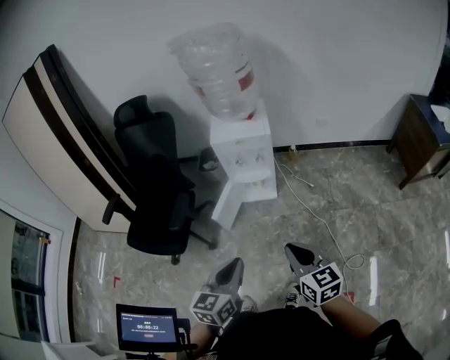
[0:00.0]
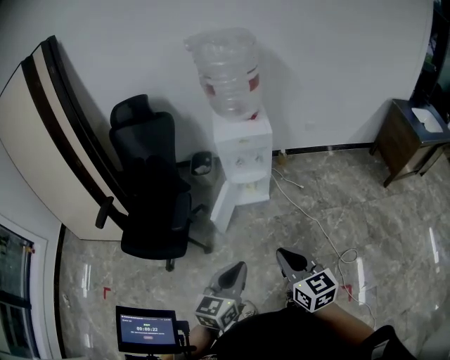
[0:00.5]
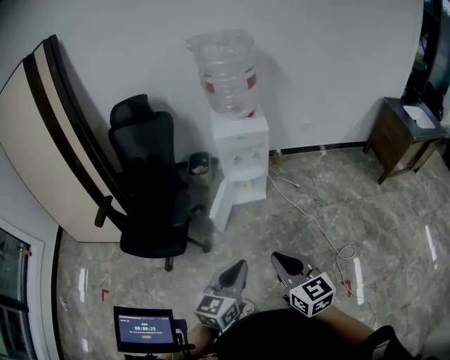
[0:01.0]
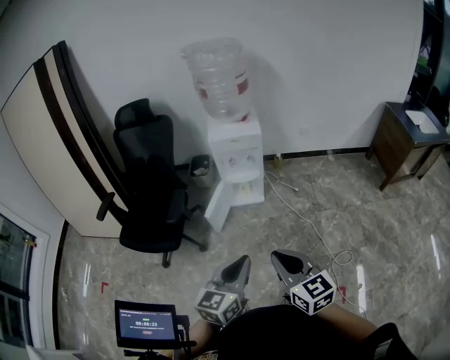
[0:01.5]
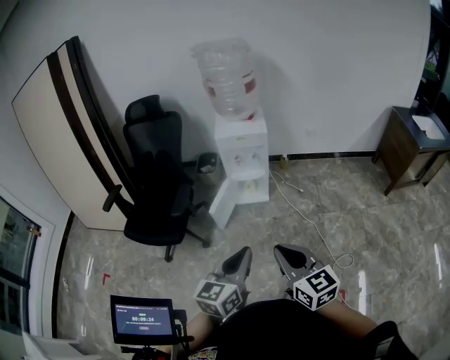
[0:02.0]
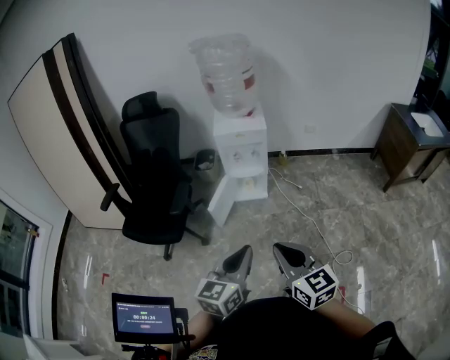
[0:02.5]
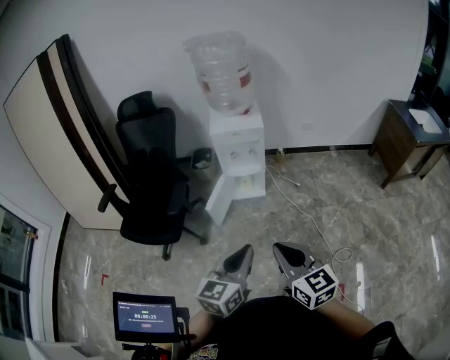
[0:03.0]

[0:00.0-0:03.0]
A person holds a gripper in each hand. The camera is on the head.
0:00.0 to 0:01.5: The right gripper heads backward, upward and to the left, covering some 15 cm, while the left gripper moves backward, approximately 10 cm.
0:01.5 to 0:03.0: The grippers make only small movements.

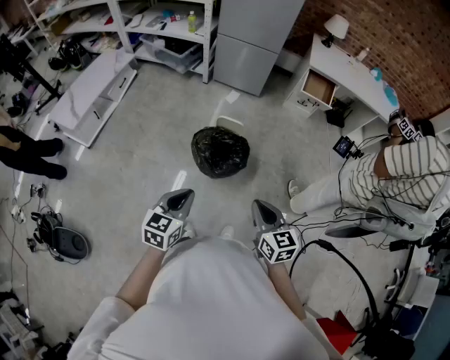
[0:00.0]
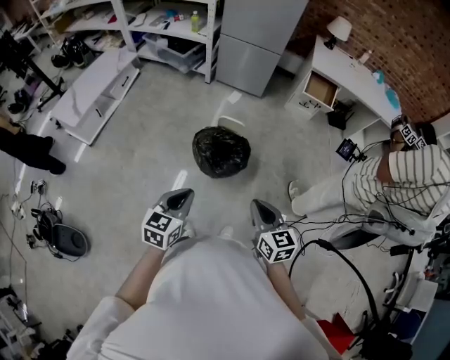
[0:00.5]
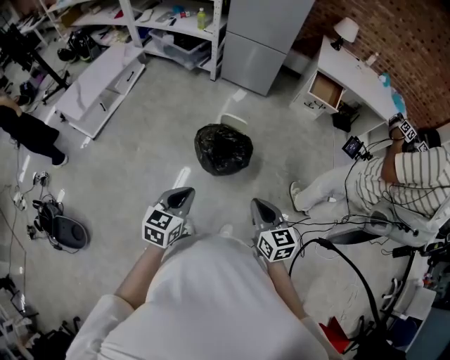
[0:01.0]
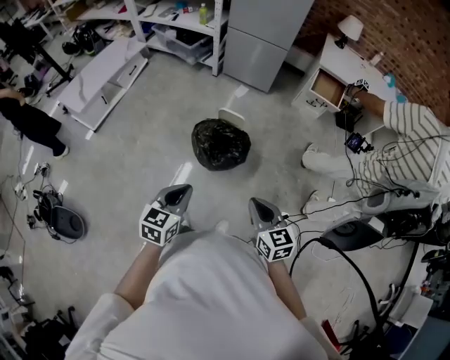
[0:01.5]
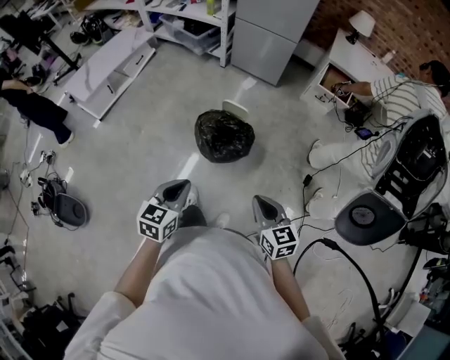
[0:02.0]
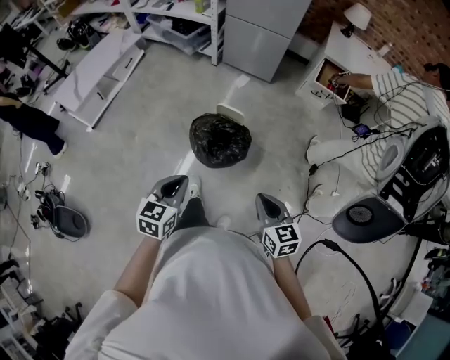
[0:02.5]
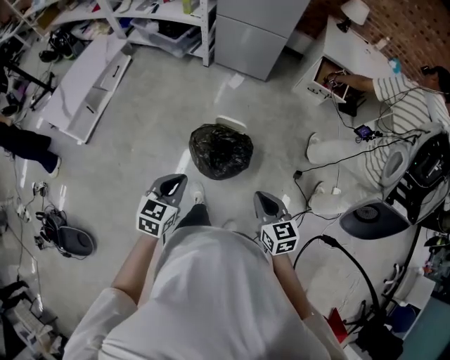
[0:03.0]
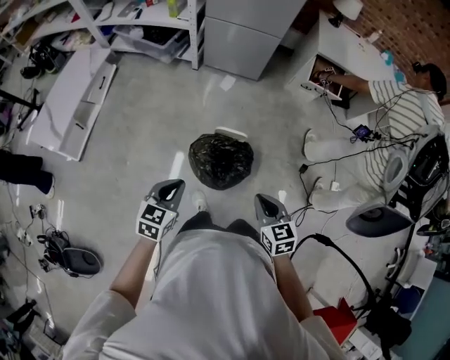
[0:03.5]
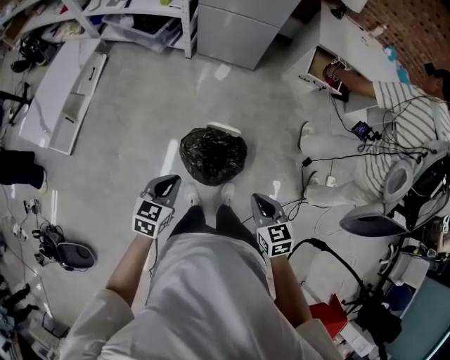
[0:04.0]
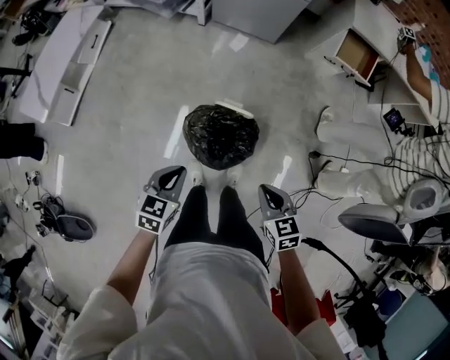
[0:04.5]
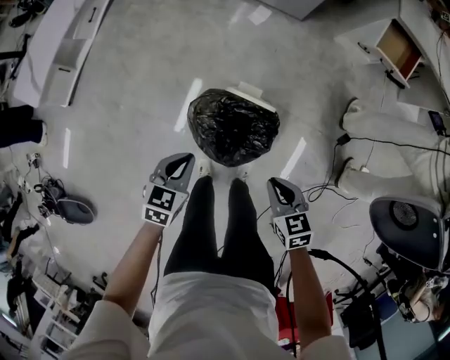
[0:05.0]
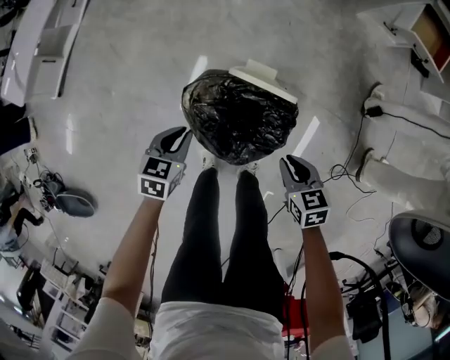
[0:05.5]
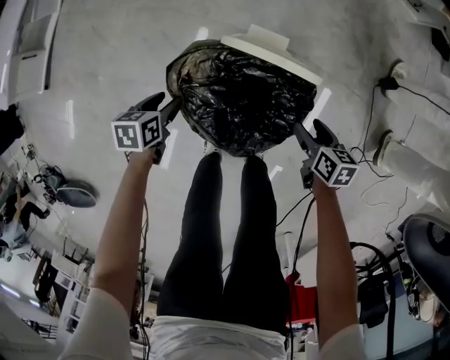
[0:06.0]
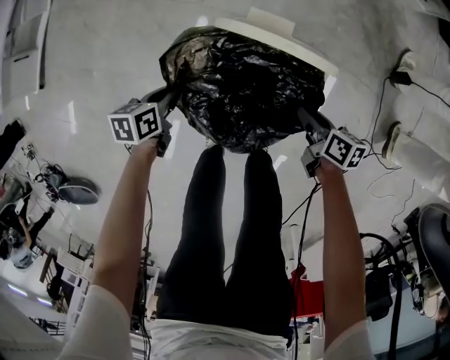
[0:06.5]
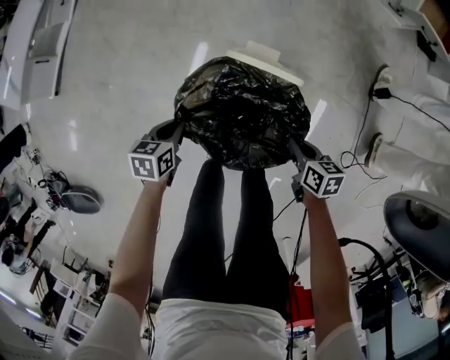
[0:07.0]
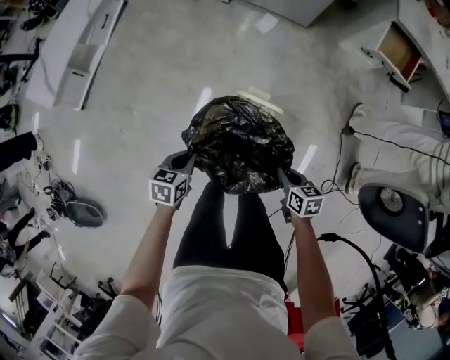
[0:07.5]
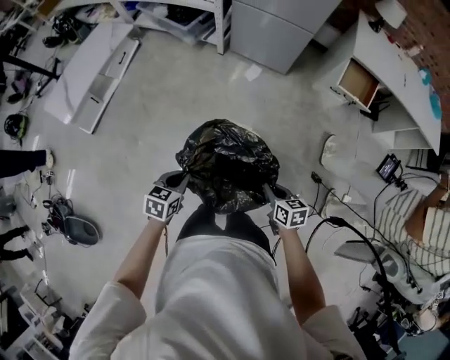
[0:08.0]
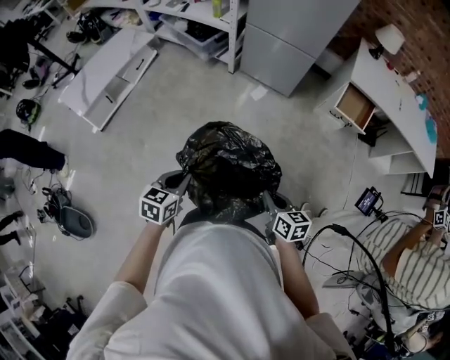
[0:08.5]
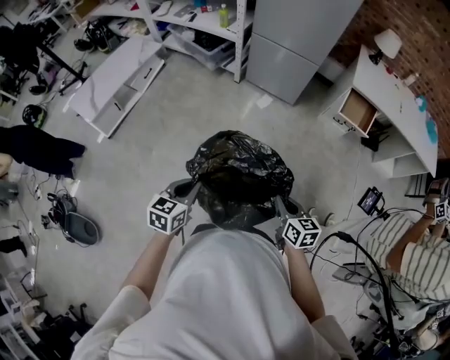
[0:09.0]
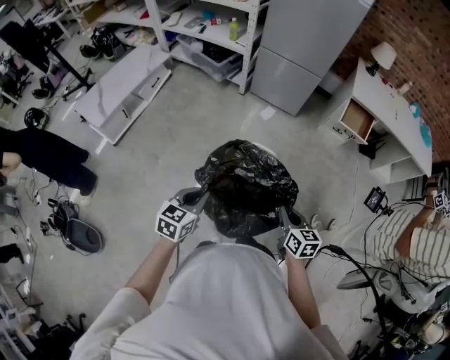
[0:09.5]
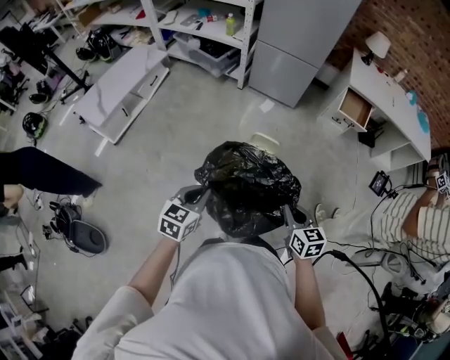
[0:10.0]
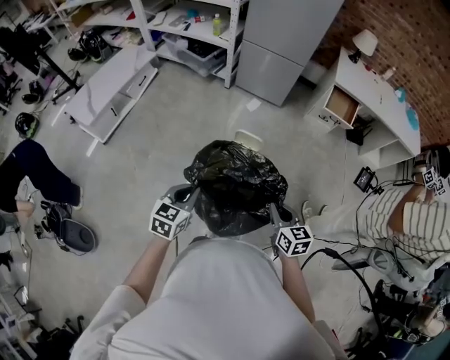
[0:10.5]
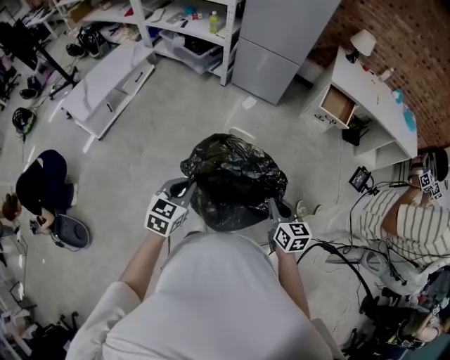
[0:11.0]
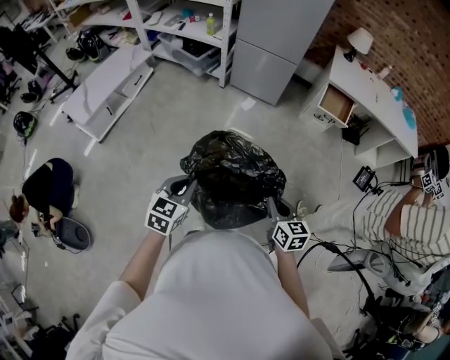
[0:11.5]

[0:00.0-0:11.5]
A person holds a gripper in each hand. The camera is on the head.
0:00.0 to 0:02.0: Both grippers move to the right, roughly 10 cm.
0:02.0 to 0:04.0: The grippers both shift forward by about 30 cm.
0:04.0 to 0:06.0: The grippers both shift downward by approximately 60 cm. The right gripper swivels about 40 degrees, and opens; the left gripper rotates approximately 40 degrees, and opens.
0:06.0 to 0:07.5: Both grippers travel together upward, roughly 25 cm. The left gripper closes its fingers; the right gripper closes.
0:07.5 to 0:09.5: The left gripper moves upward and backward, roughly 40 cm, and changes its angle by roughly 30 degrees; the right gripper goes some 35 cm upward, and changes its angle by roughly 30 degrees.
0:09.5 to 0:11.5: The right gripper travels to the right and backward by approximately 10 cm; the left gripper travels to the right by approximately 5 cm.

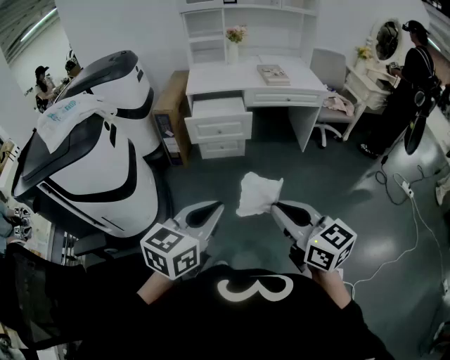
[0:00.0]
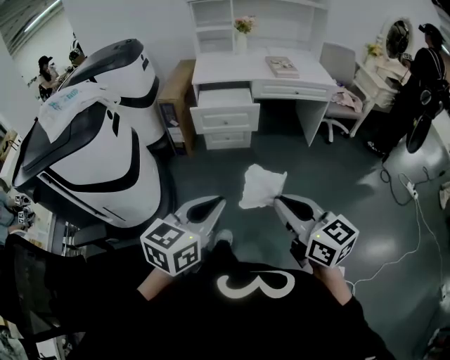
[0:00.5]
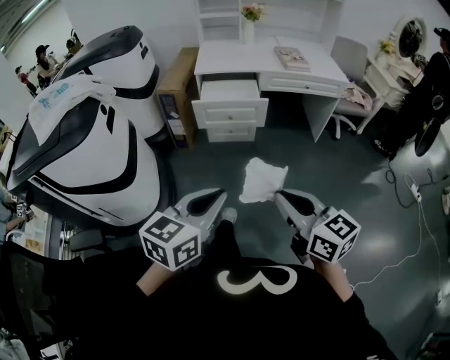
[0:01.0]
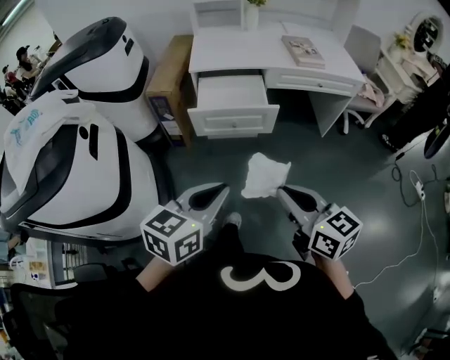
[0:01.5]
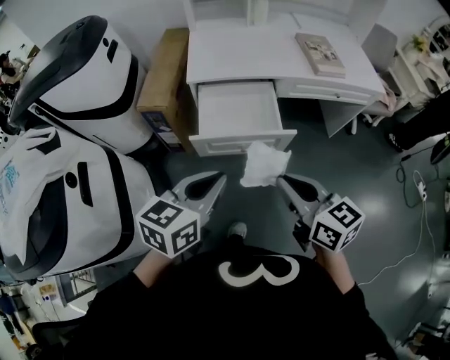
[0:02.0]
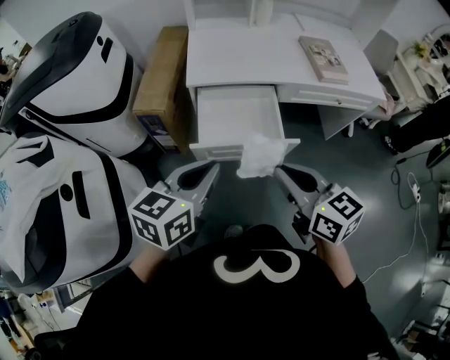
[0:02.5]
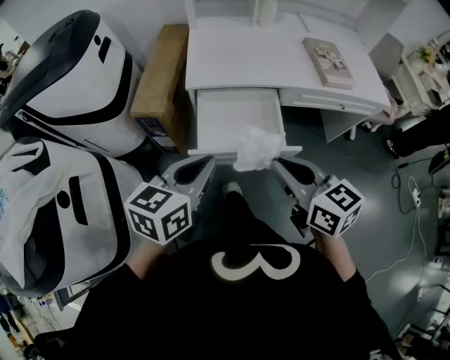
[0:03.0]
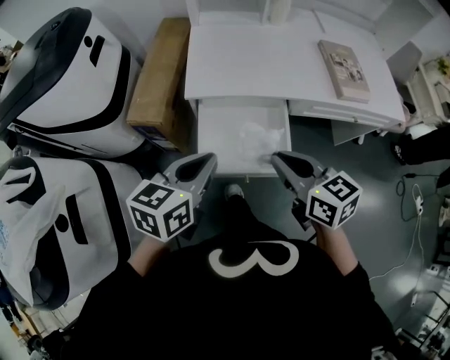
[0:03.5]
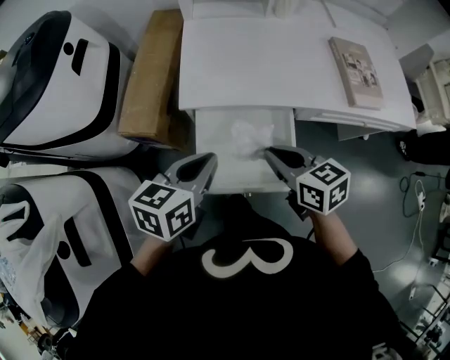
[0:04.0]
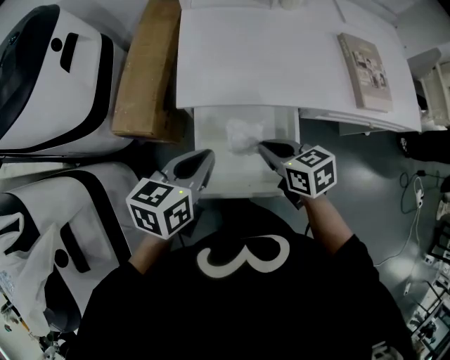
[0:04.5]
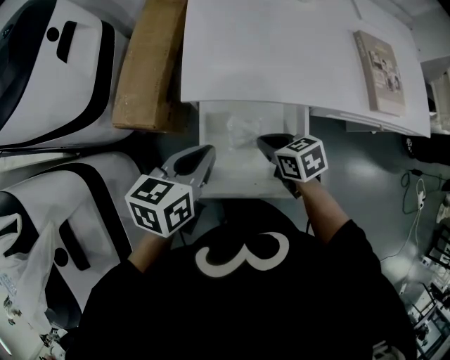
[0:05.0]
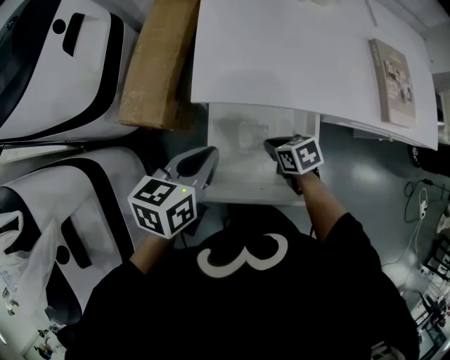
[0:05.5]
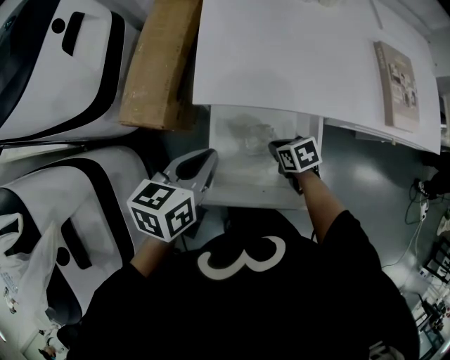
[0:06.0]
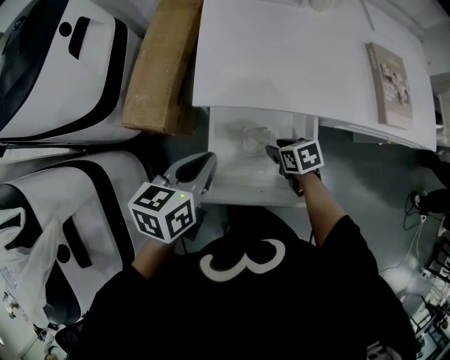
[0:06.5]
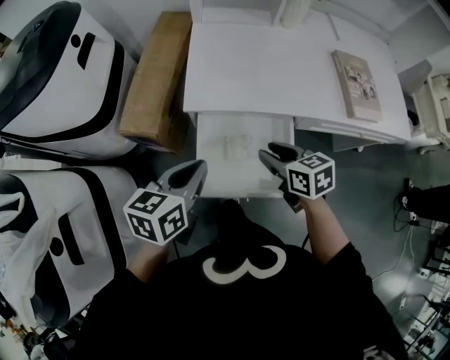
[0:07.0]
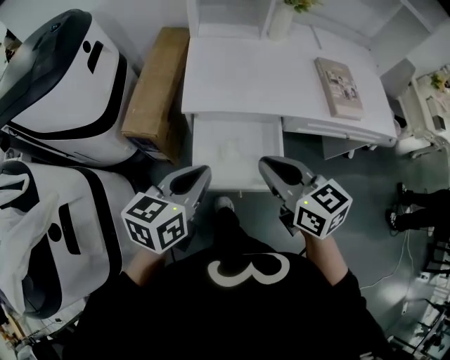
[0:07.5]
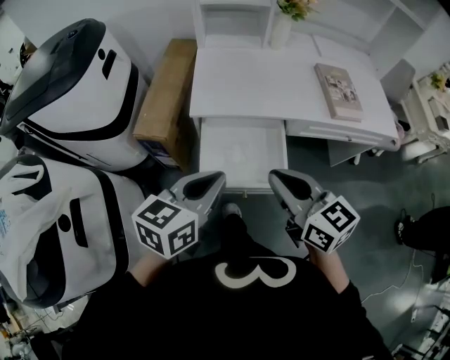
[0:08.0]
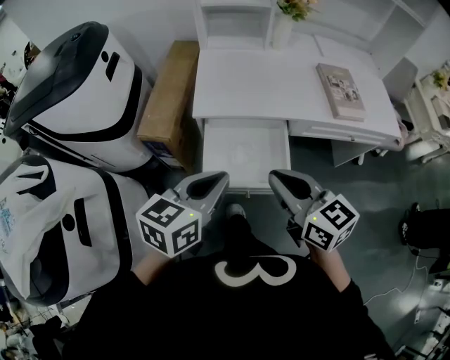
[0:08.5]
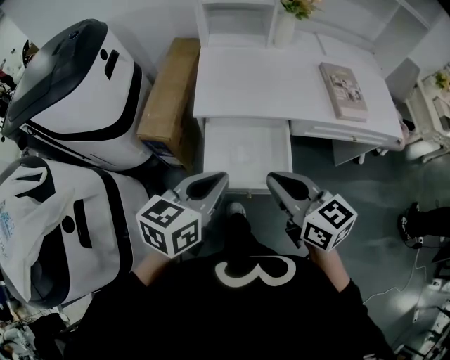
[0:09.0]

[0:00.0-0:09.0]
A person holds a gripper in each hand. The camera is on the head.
0:00.0 to 0:02.0: Both grippers are carried forward, about 50 cm.
0:02.0 to 0:04.5: The left gripper shifts approximately 30 cm forward, while the right gripper moves forward and downward, roughly 40 cm, and swivels about 30 degrees.
0:04.5 to 0:07.0: The right gripper reaches some 20 cm downward, then returns, and opens up.
0:07.0 to 0:09.0: The right gripper moves upward and backward, approximately 20 cm, turns by about 20 degrees, and closes, while the left gripper moves backward and upward, roughly 15 cm.

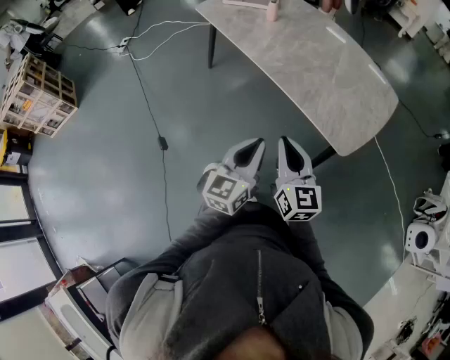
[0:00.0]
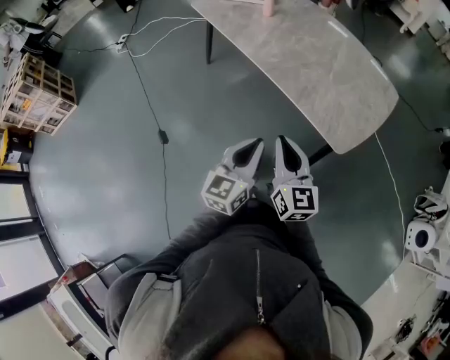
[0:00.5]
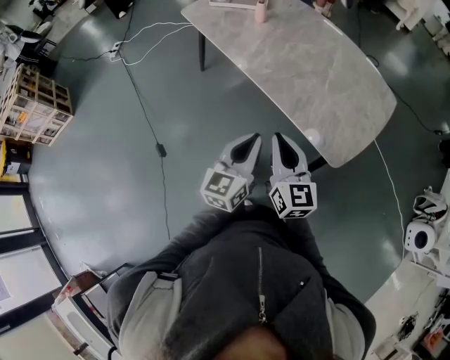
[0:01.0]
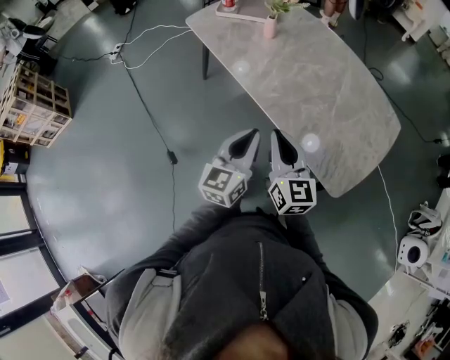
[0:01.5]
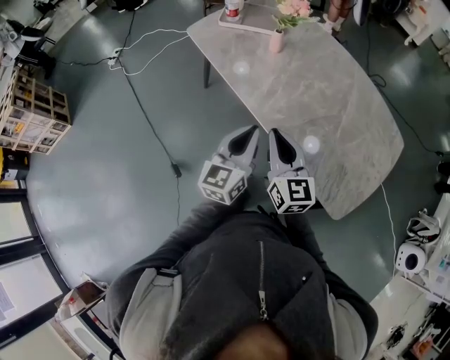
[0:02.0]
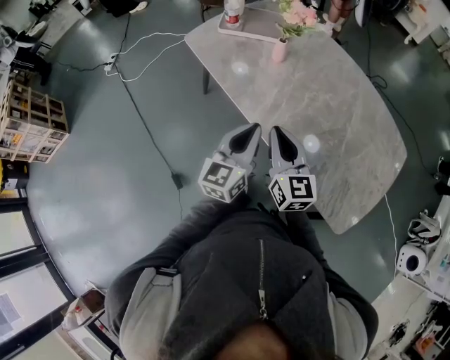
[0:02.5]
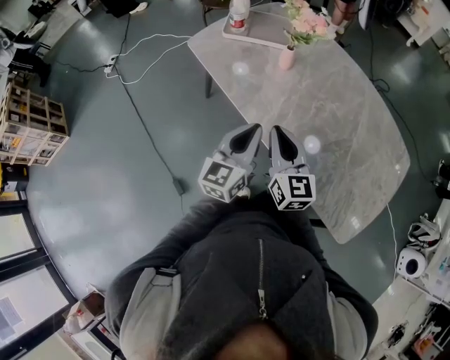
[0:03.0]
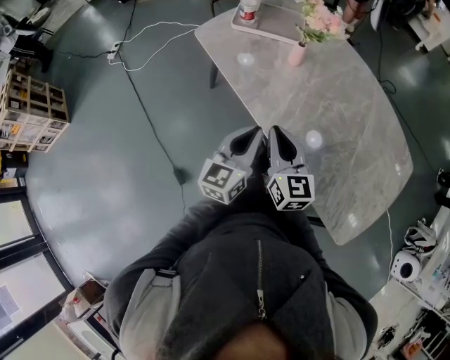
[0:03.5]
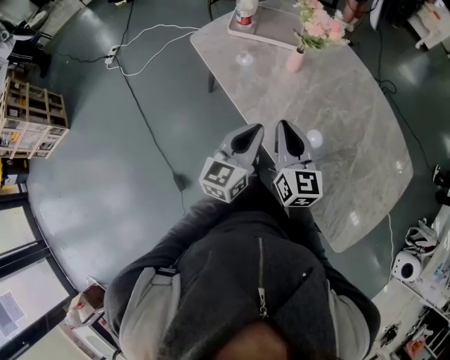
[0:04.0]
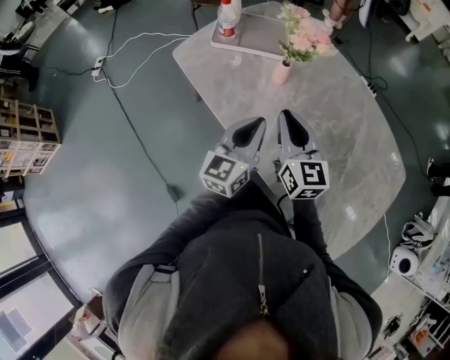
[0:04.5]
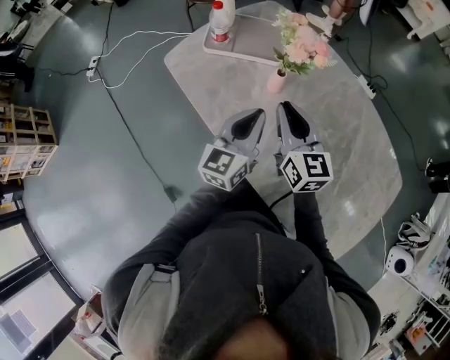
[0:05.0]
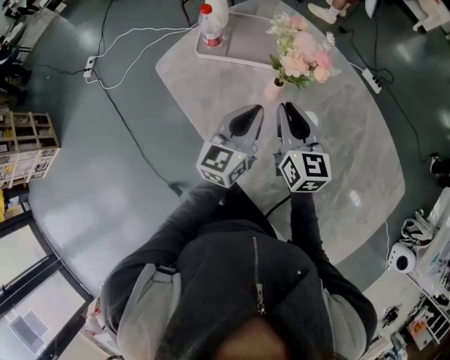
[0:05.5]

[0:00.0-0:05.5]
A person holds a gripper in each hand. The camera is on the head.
0:00.0 to 0:02.0: Both grippers move forward, approximately 25 cm.
0:02.0 to 0:03.5: The two grippers go about 10 cm forward and to the left.
0:03.5 to 0:05.5: Both grippers travel together forward, about 25 cm.
